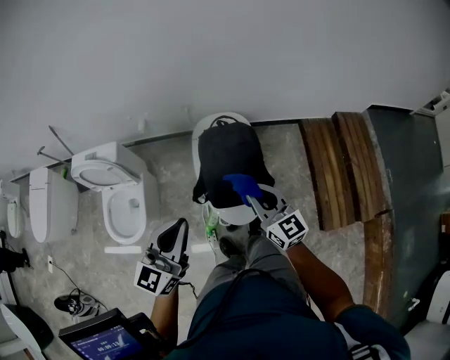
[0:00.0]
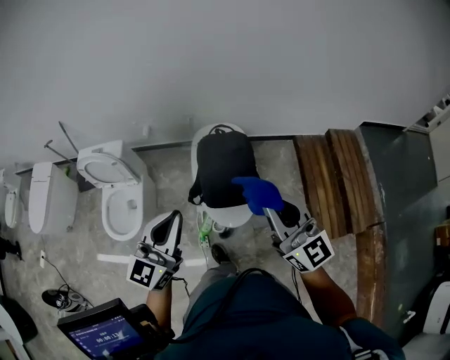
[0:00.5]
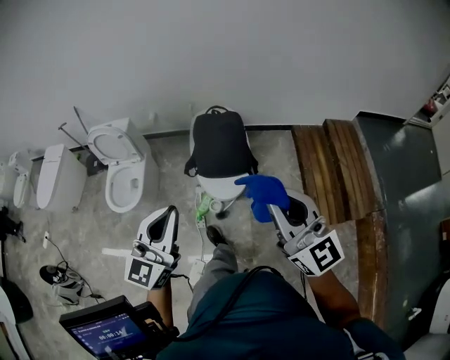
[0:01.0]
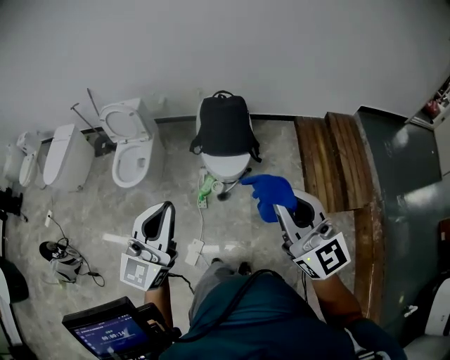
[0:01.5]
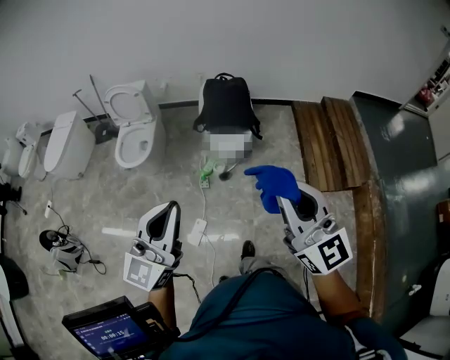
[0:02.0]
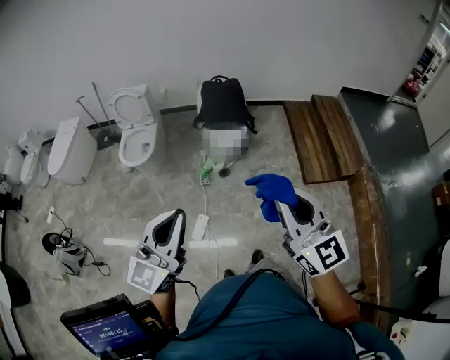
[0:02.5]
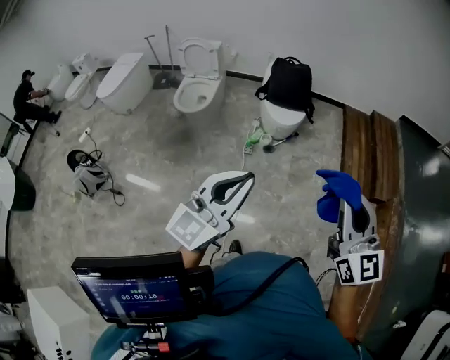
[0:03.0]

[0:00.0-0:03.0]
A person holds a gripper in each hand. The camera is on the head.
0:00.0 to 0:01.5: Both grippers are carried backward, some 40 cm. The right gripper is displaced upward by some 25 cm.
0:01.5 to 0:03.0: The two grippers go approximately 30 cm backward.

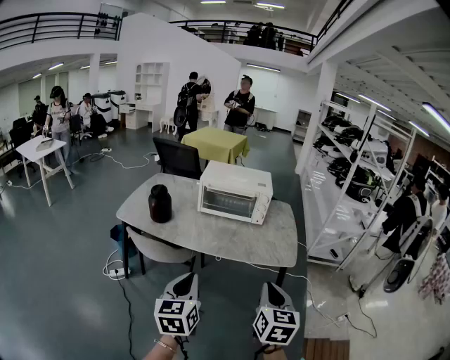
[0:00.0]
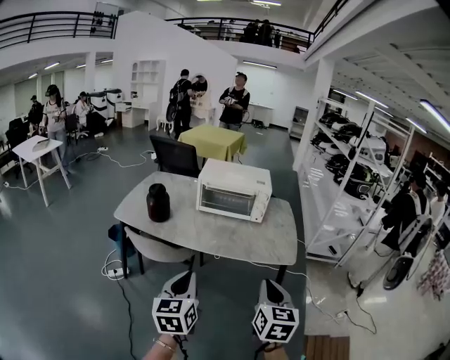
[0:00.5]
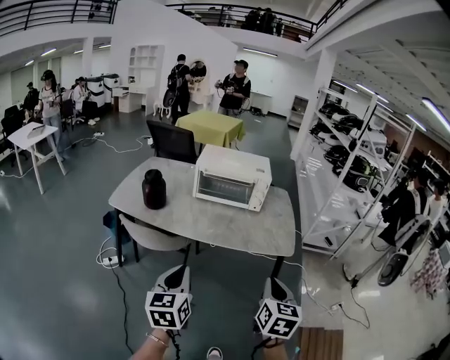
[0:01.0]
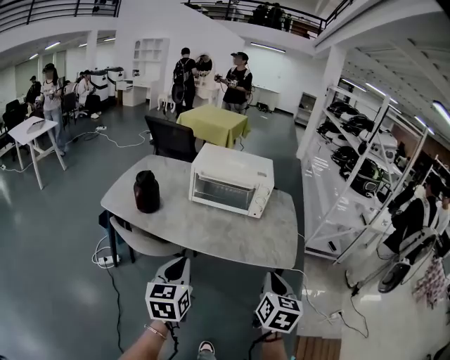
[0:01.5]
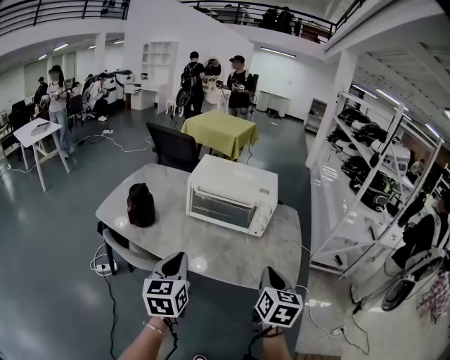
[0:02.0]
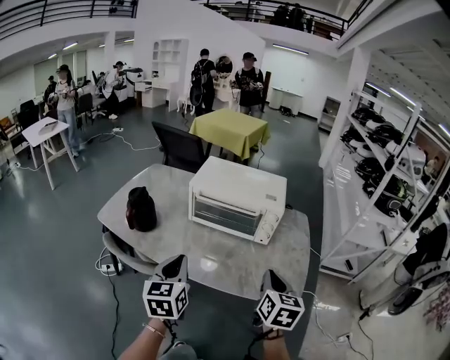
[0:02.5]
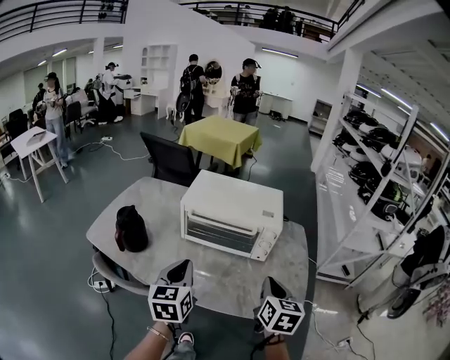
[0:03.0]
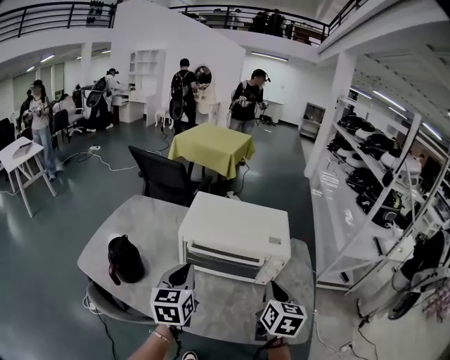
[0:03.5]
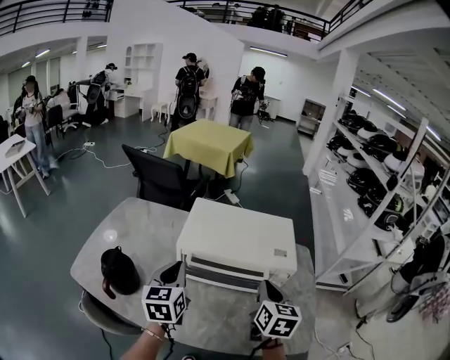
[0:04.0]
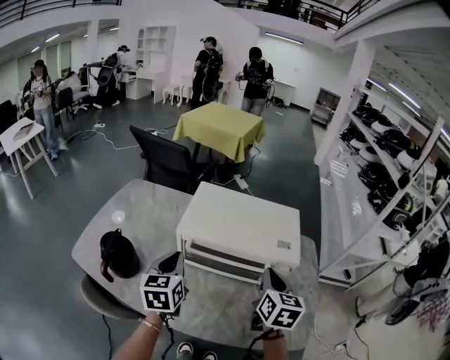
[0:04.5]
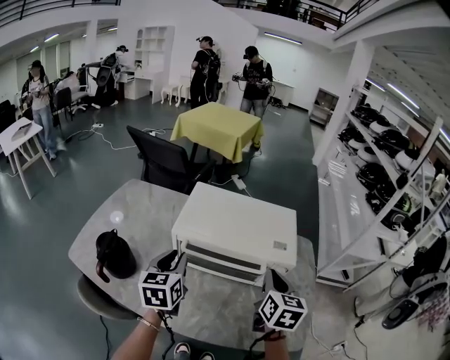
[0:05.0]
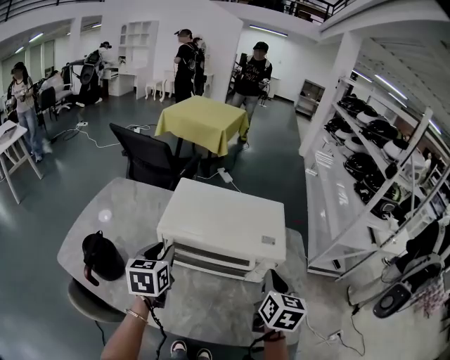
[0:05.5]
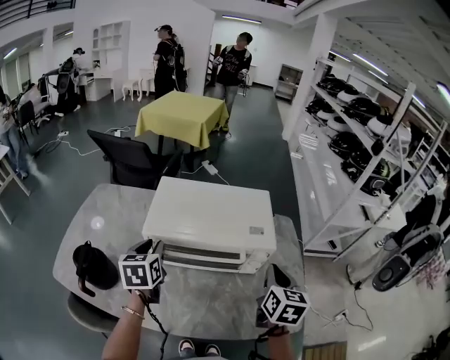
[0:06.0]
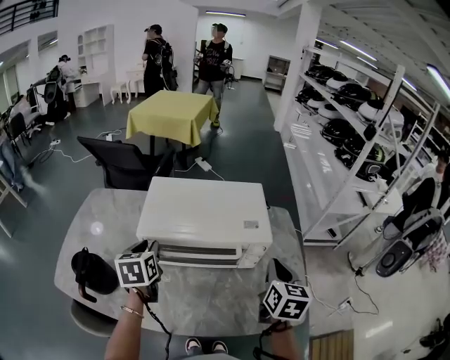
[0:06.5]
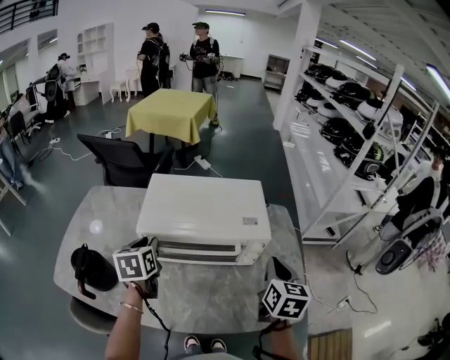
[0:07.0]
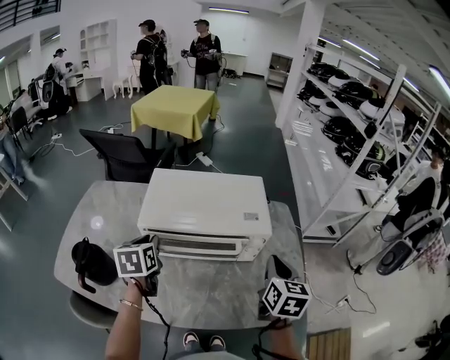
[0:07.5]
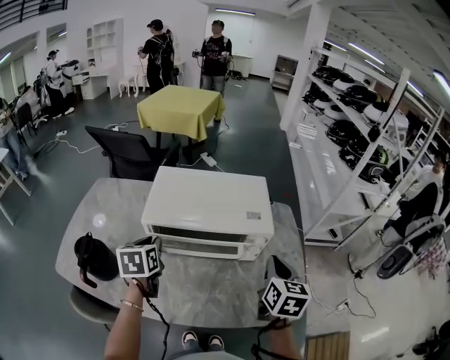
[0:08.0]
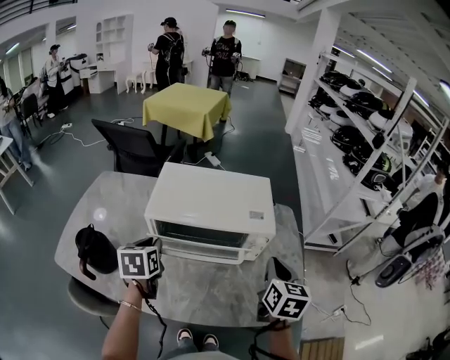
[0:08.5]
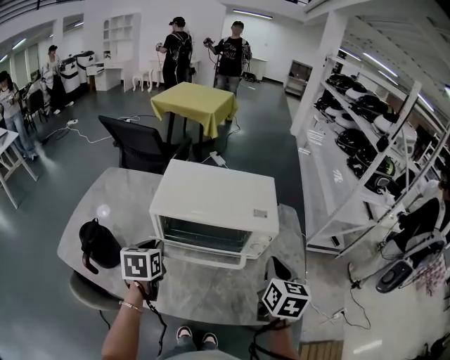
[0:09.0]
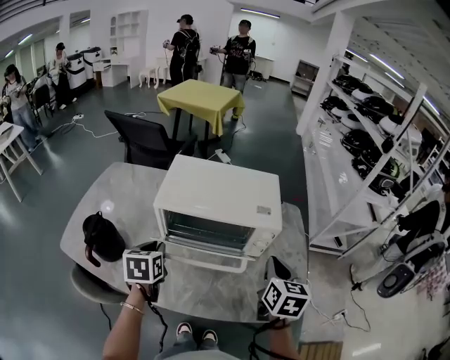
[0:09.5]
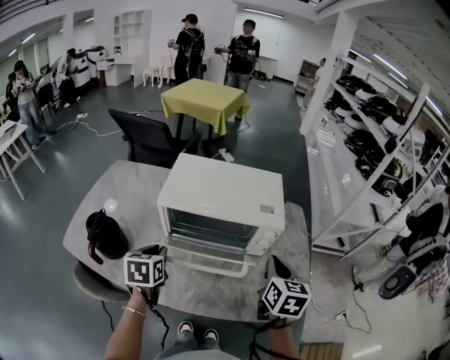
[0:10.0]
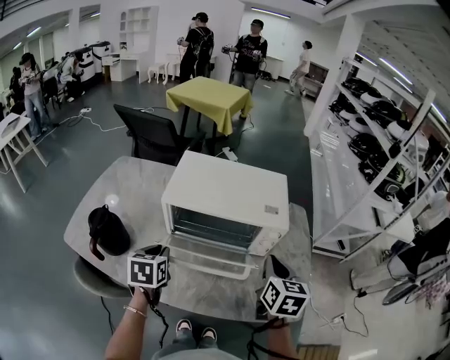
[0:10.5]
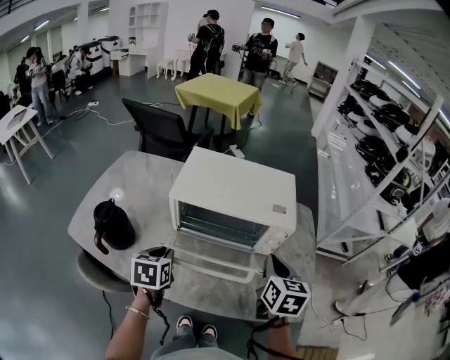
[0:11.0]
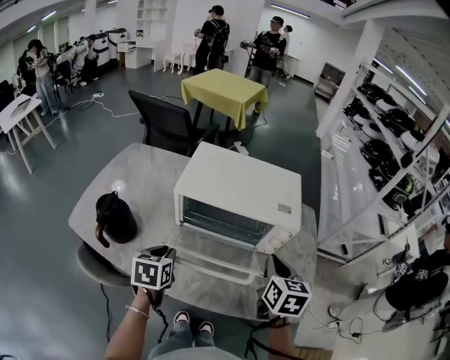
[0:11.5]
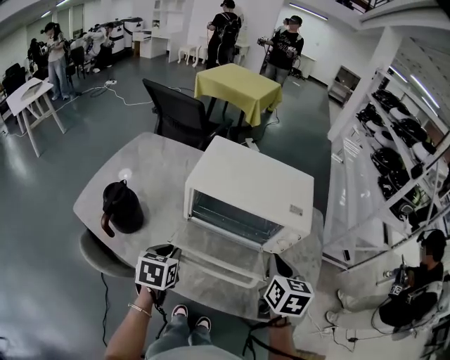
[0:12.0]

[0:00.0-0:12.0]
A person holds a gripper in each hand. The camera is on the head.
0:00.0 to 0:02.0: Both grippers travel together forward, roughly 25 cm.
0:02.0 to 0:04.0: Both grippers travel together forward, about 30 cm.
0:04.0 to 0:06.0: The right gripper shifts approximately 10 cm to the right. The left gripper moves forward, some 5 cm, and opens up.
0:06.0 to 0:08.0: The grippers make only small movements.
0:08.0 to 0:10.0: The left gripper is displaced backward by some 10 cm.
0:10.0 to 0:12.0: The left gripper moves approximately 5 cm. Meanwhile the right gripper goes some 5 cm to the left.

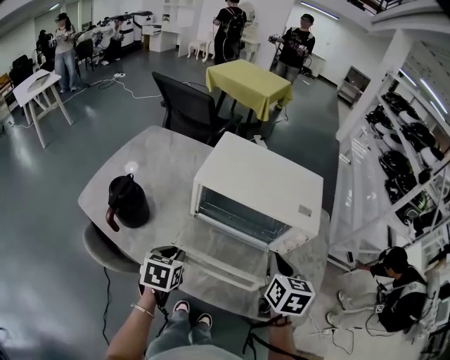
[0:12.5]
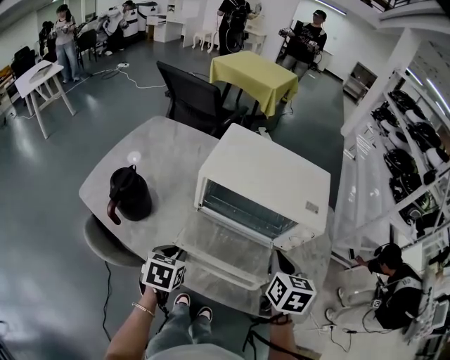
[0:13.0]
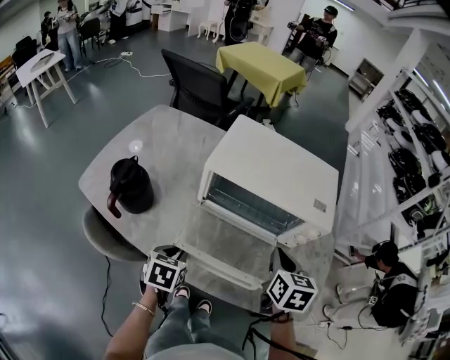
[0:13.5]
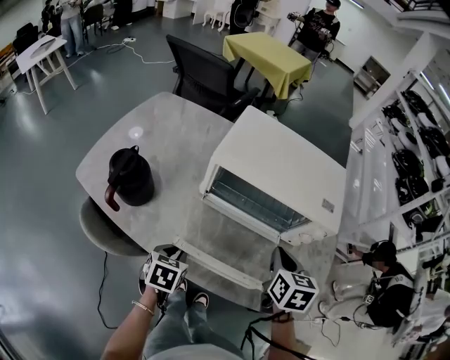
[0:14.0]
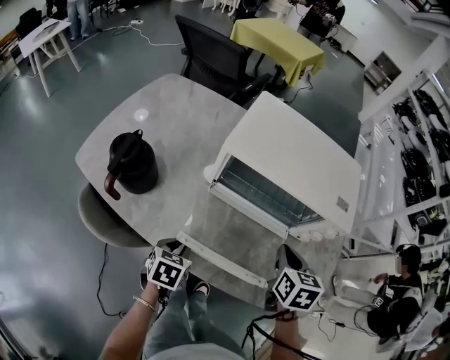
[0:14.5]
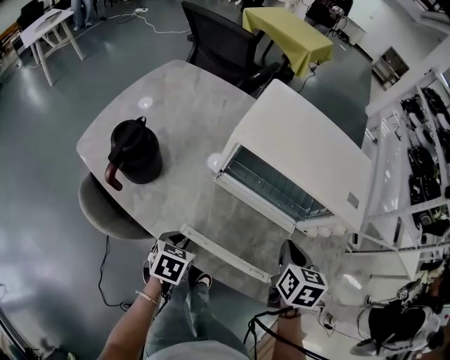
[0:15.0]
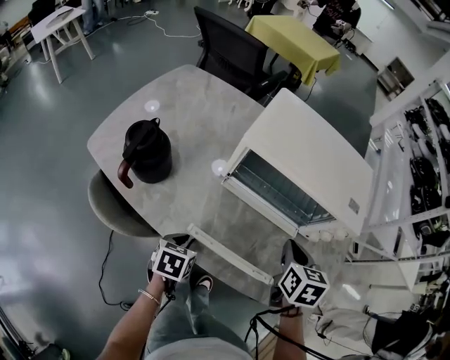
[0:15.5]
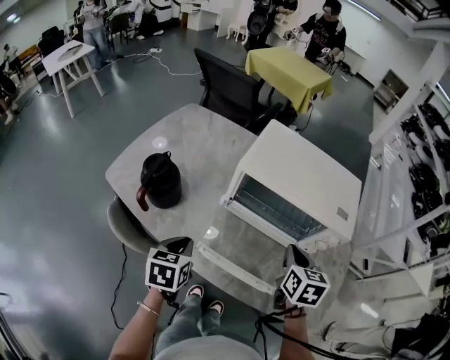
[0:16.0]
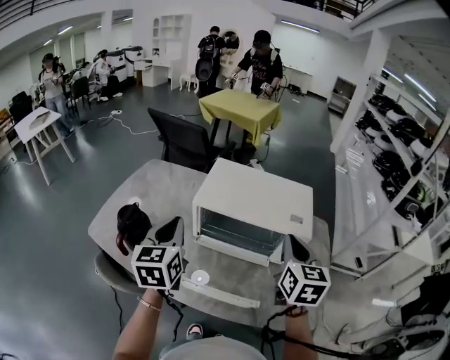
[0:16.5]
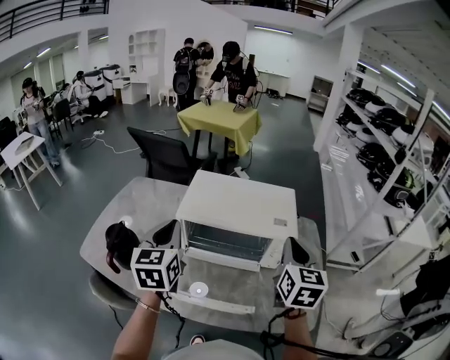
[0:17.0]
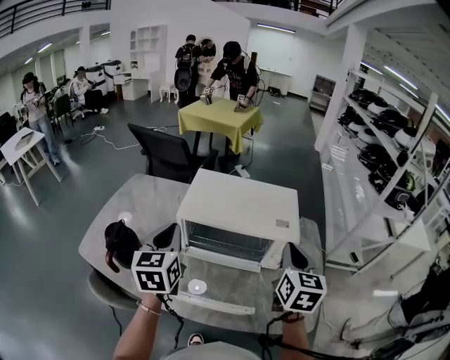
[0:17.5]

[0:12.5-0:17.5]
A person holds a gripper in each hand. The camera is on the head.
0:12.5 to 0:15.0: The two grippers go about 10 cm downward.
0:15.0 to 0:17.5: The left gripper heads upward, covering approximately 35 cm, and tips its fingers upward by about 40 degrees; the right gripper moves upward, about 20 cm, and angles its fingers upward, by approximately 30 degrees.

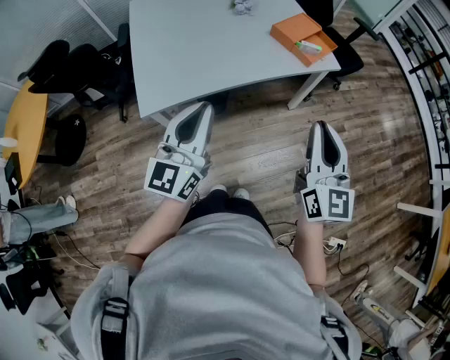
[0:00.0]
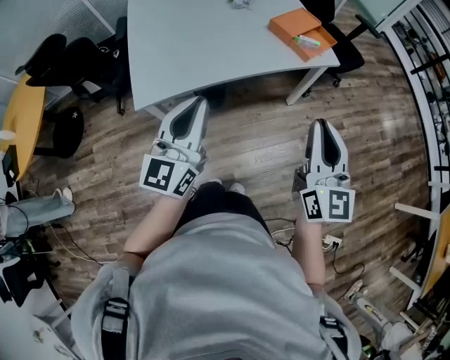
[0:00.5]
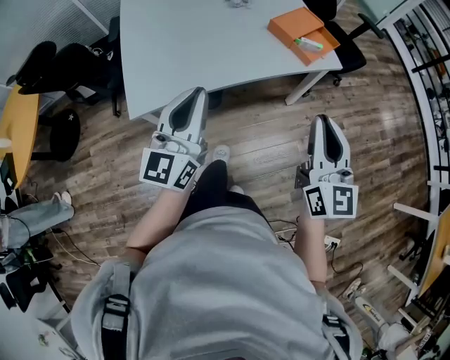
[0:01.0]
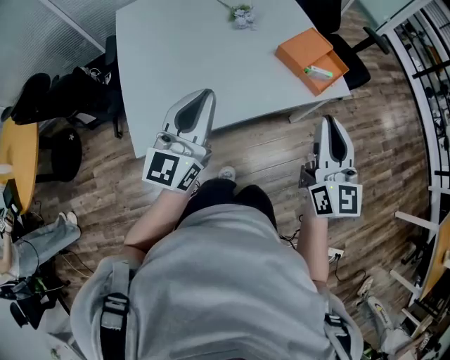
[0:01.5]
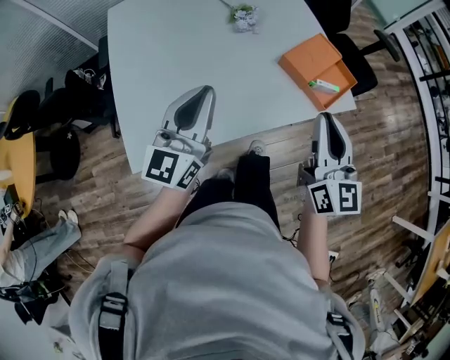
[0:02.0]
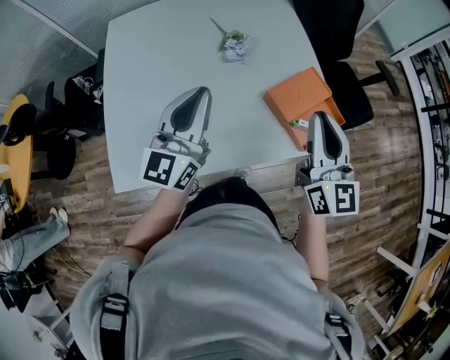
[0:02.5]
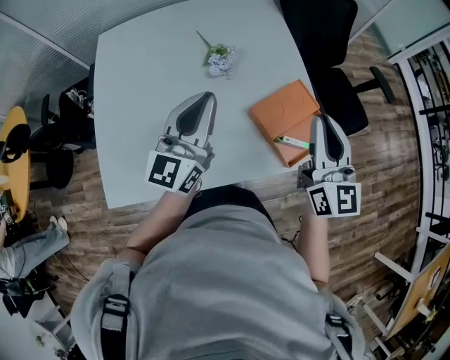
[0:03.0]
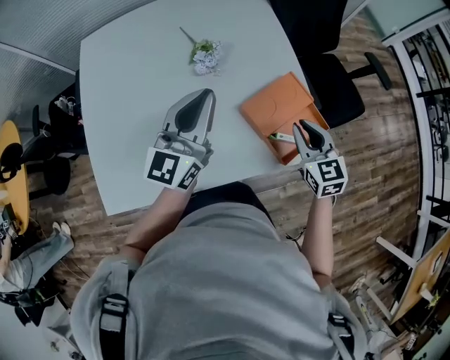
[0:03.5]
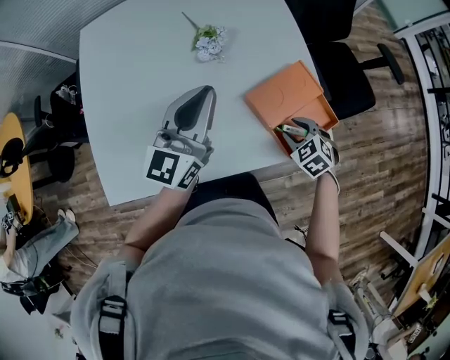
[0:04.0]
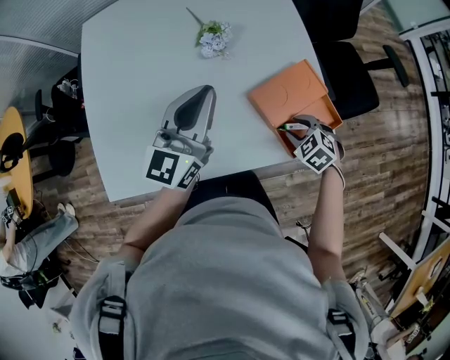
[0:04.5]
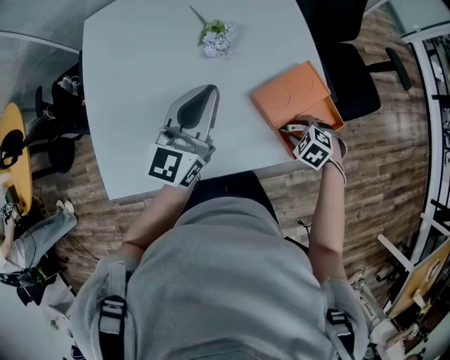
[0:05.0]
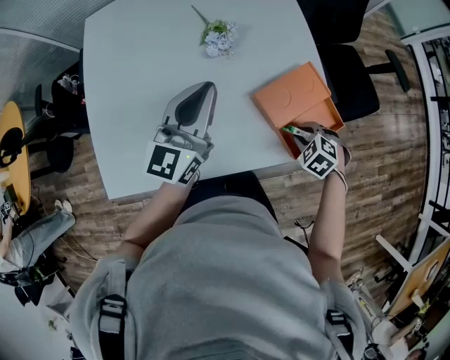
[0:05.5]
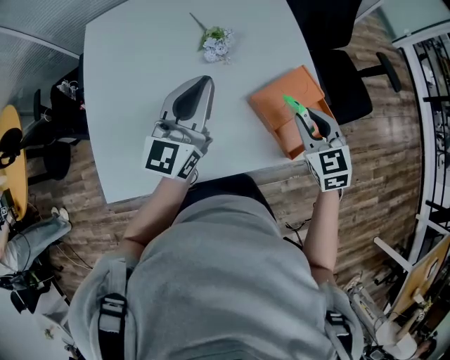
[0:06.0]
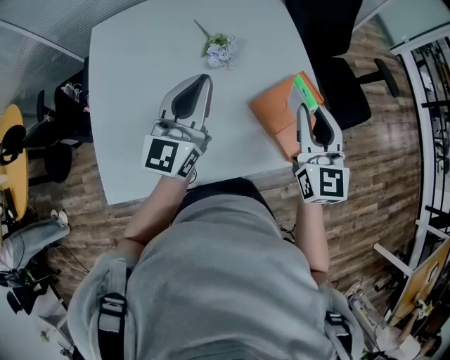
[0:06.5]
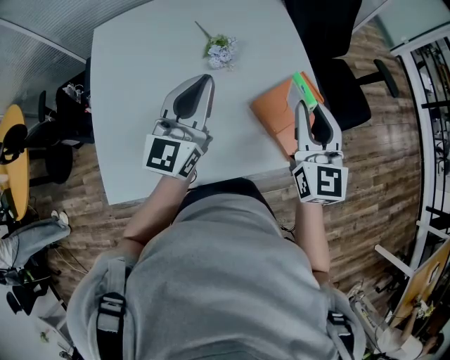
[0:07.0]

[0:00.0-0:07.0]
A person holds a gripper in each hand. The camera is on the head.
0:00.0 to 0:02.0: Both grippers travel together forward, roughly 40 cm.
0:02.0 to 0:03.5: The left gripper moves forward and to the right, approximately 30 cm. The right gripper shifts some 35 cm forward, to the right and downward, and changes its angle by approximately 40 degrees.
0:03.5 to 0:05.0: The right gripper shifts roughly 20 cm downward, angles its fingers downward, by about 50 degrees, and opens up, while the left gripper changes place by some 5 cm.
0:05.0 to 0:07.0: The left gripper heads upward, covering approximately 5 cm; the right gripper goes about 30 cm upward, and angles its fingers upward, by some 70 degrees.
